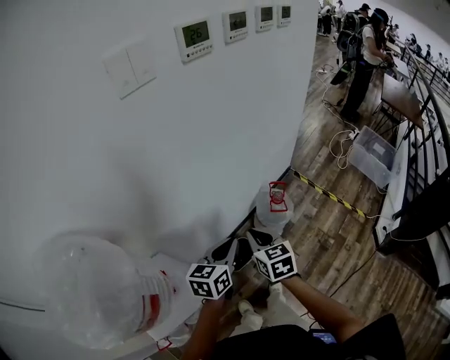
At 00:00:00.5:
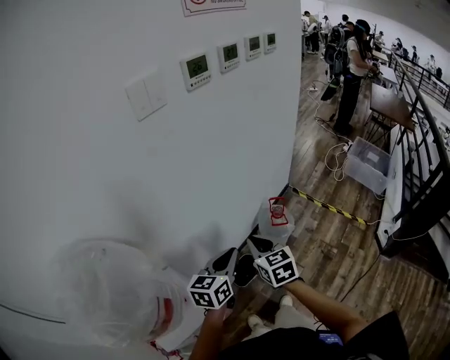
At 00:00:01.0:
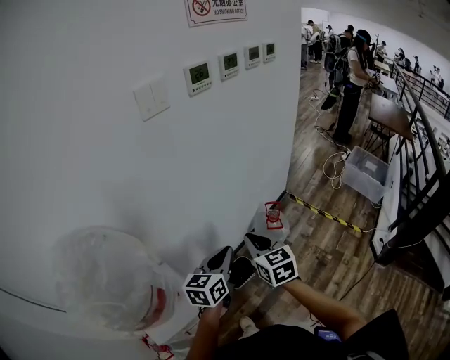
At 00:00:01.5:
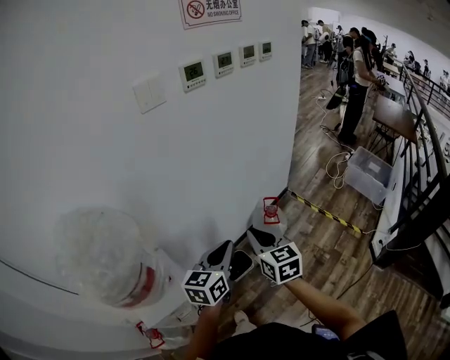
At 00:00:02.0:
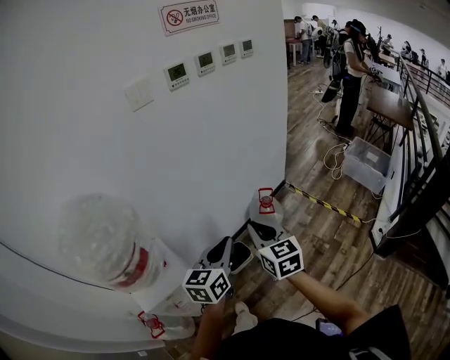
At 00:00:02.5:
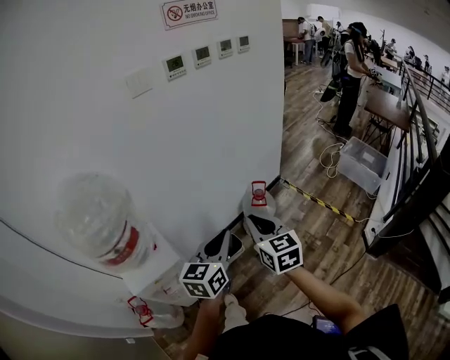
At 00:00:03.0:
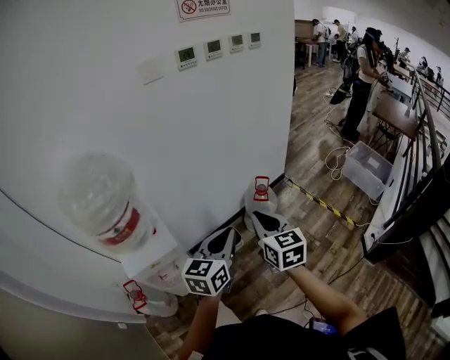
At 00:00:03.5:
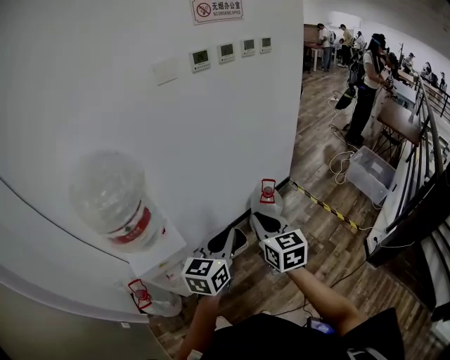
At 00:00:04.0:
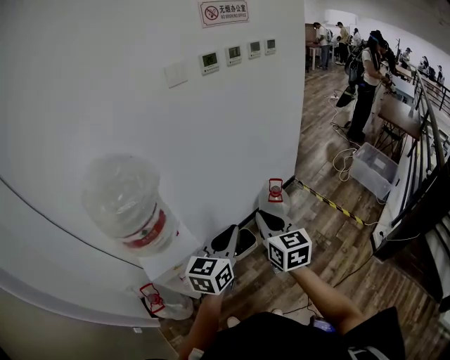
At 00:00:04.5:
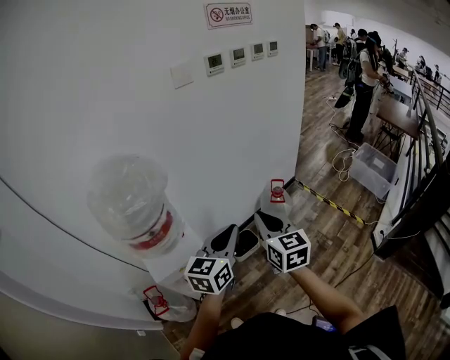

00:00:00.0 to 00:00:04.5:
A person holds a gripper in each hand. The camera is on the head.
00:00:00.0 to 00:00:02.0: Both grippers travel together backward, upward and to the right, some 20 cm.
00:00:02.0 to 00:00:04.5: The grippers both shift backward and to the left by some 10 cm.

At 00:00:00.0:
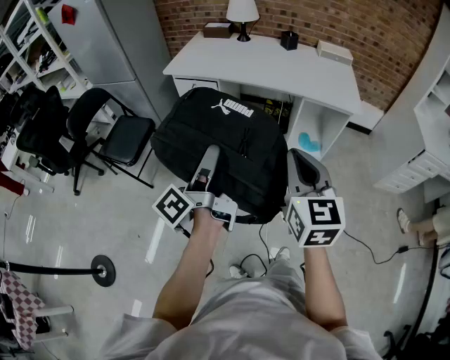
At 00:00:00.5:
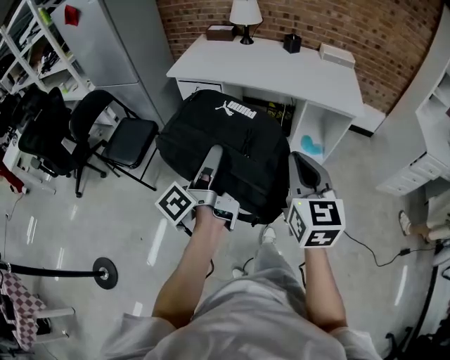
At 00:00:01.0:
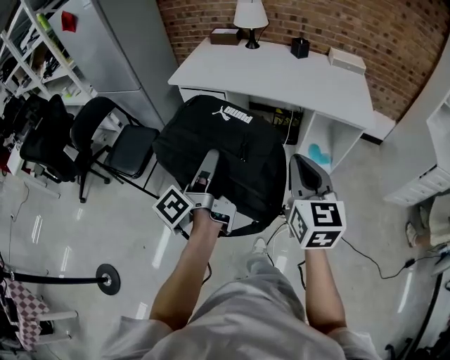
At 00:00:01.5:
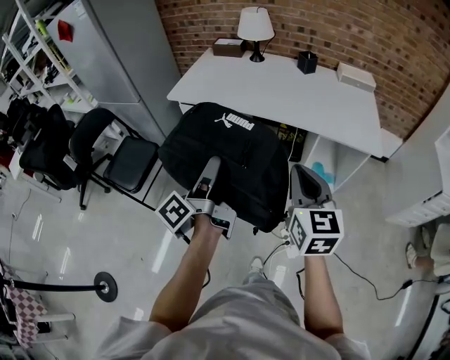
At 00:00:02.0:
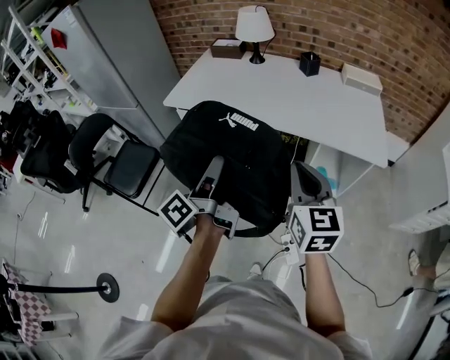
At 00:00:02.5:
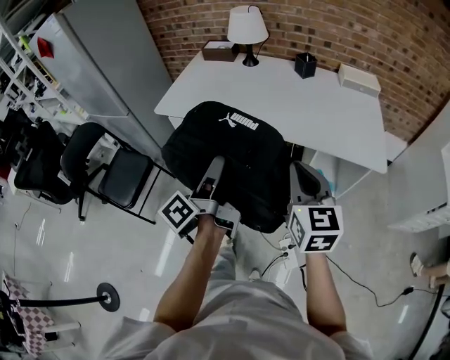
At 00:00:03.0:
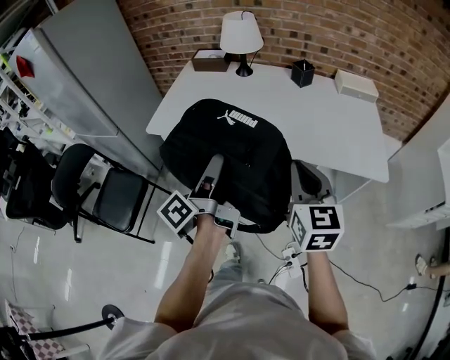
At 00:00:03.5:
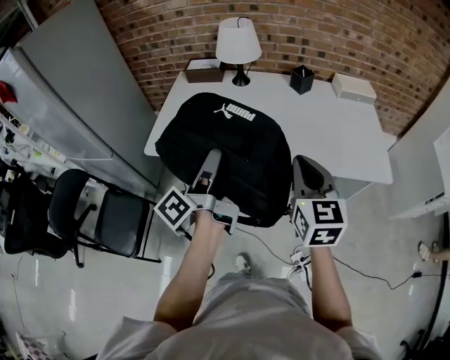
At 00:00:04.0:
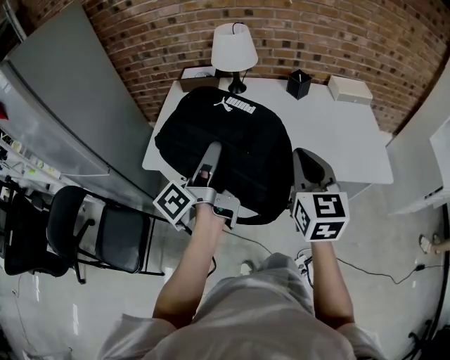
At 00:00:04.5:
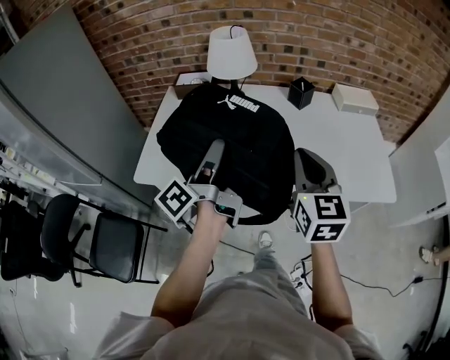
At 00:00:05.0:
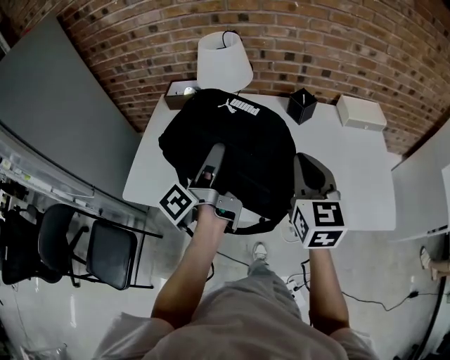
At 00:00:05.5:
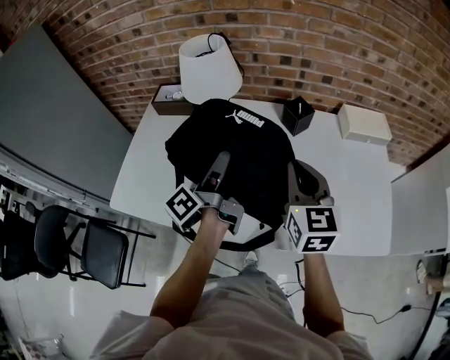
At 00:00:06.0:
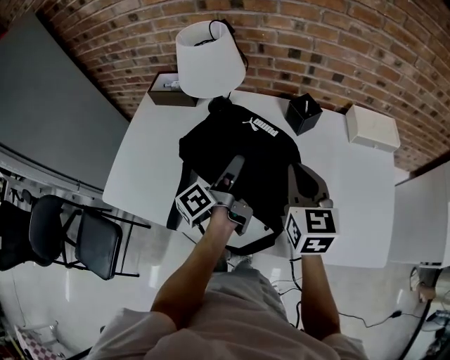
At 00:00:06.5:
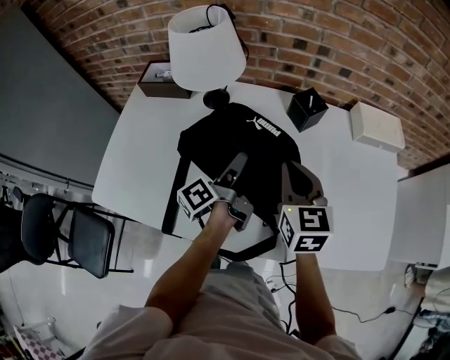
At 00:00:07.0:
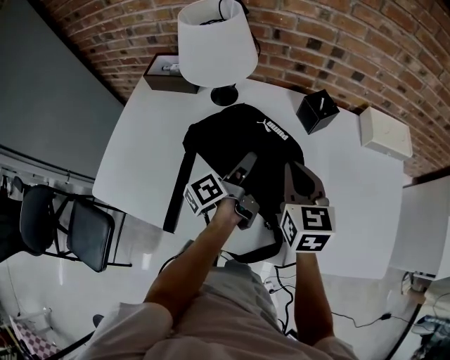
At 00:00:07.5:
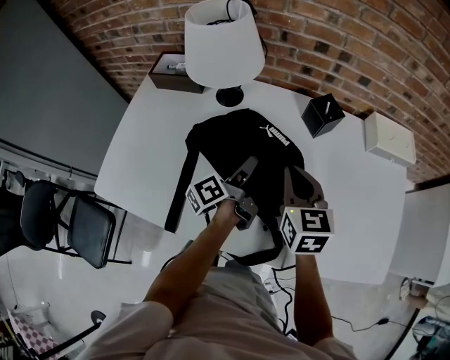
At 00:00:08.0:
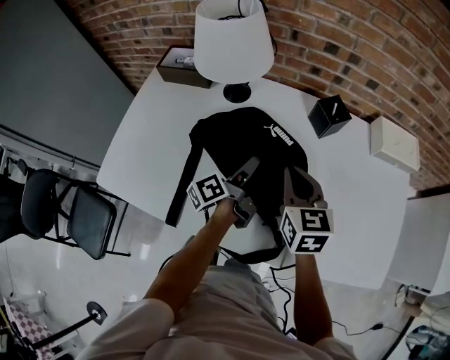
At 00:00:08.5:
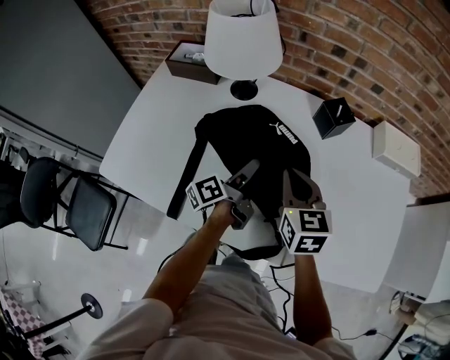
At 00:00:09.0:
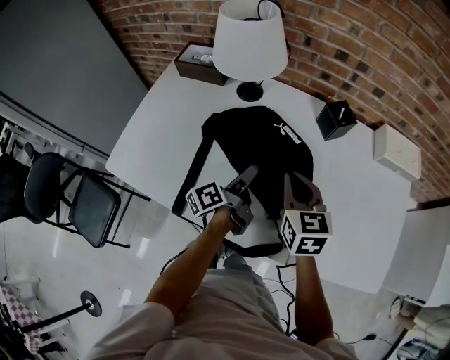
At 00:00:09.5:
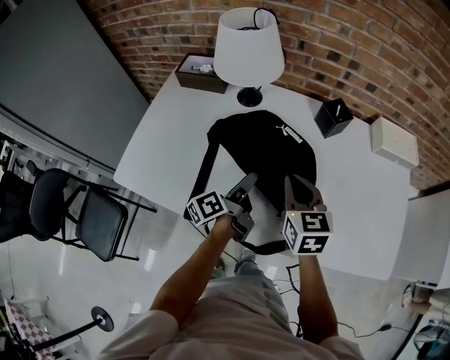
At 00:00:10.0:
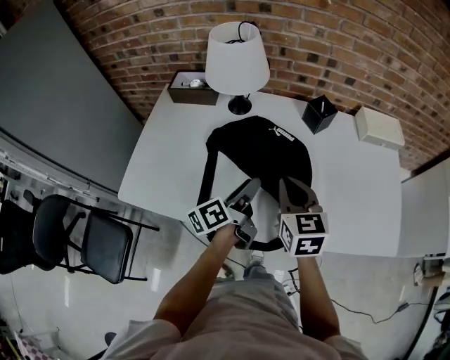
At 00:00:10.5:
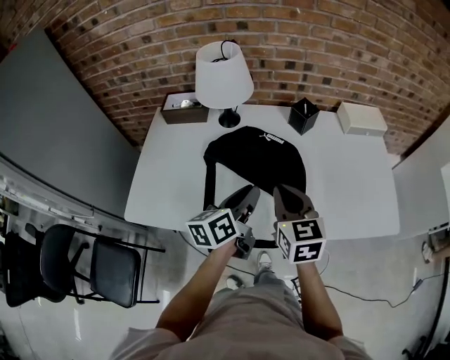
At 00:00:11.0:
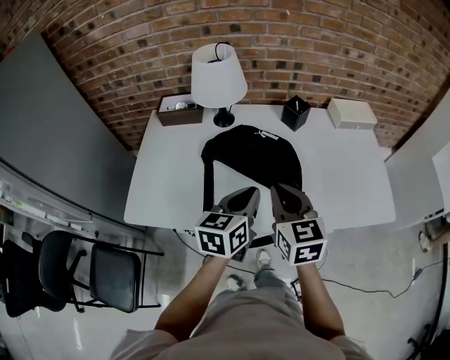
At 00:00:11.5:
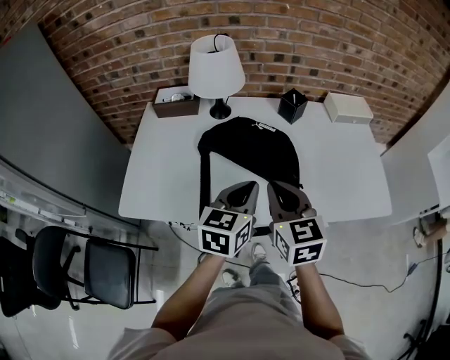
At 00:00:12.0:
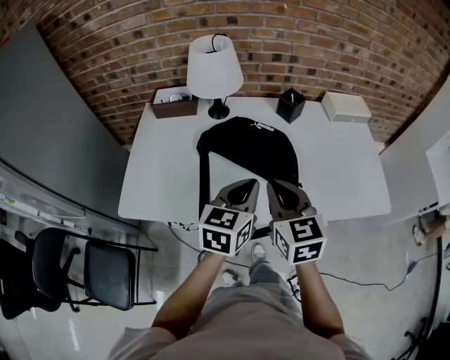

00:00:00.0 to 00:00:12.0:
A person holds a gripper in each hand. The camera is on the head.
00:00:00.0 to 00:00:02.0: The right gripper changes place by roughly 30 cm.
00:00:02.0 to 00:00:04.0: The right gripper moves some 30 cm.
00:00:04.0 to 00:00:06.0: The right gripper shifts by about 35 cm.
00:00:06.0 to 00:00:08.0: The right gripper moves downward, about 10 cm.
00:00:08.0 to 00:00:10.0: The right gripper shifts by about 10 cm.
00:00:10.0 to 00:00:12.0: The right gripper moves some 10 cm.

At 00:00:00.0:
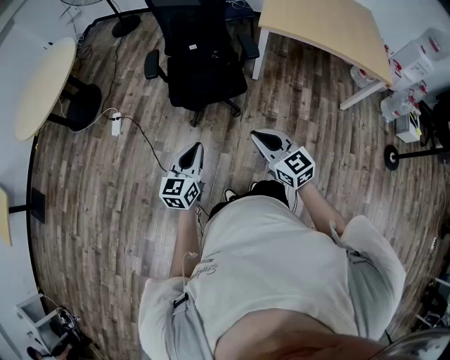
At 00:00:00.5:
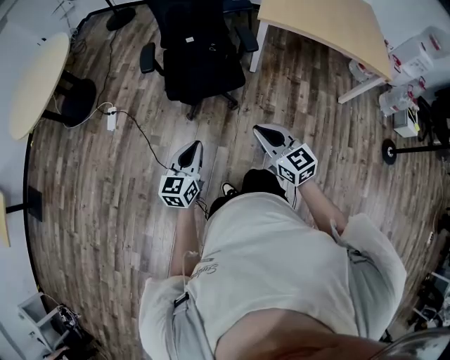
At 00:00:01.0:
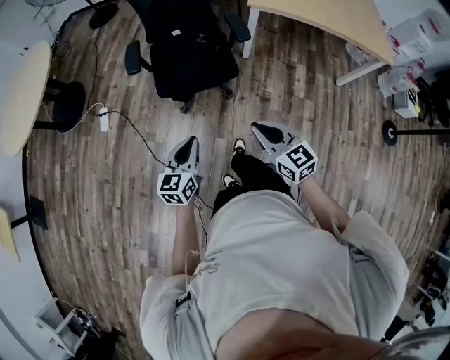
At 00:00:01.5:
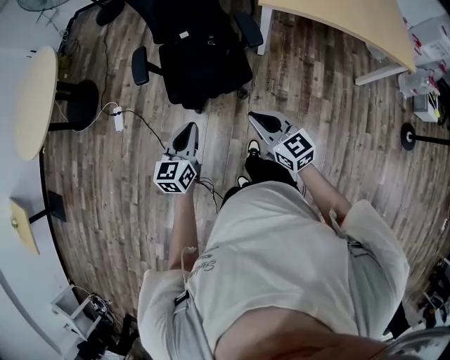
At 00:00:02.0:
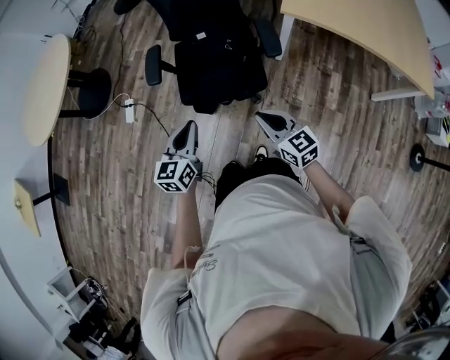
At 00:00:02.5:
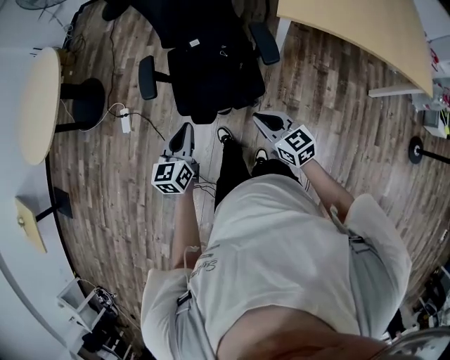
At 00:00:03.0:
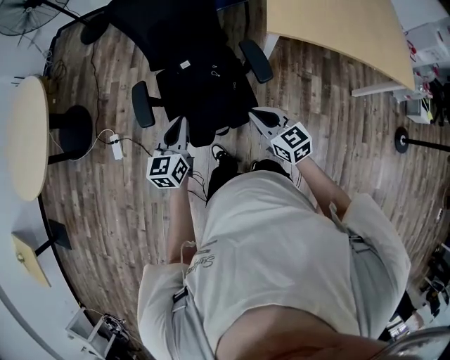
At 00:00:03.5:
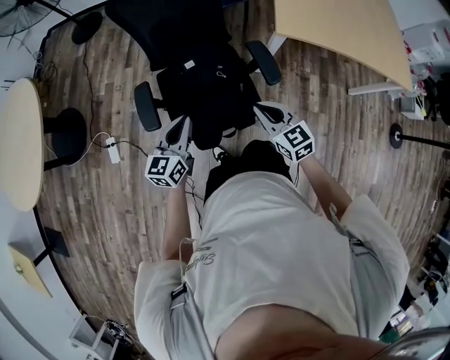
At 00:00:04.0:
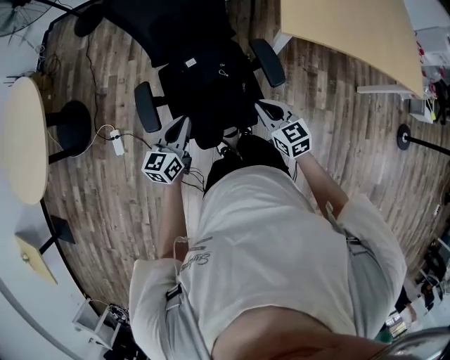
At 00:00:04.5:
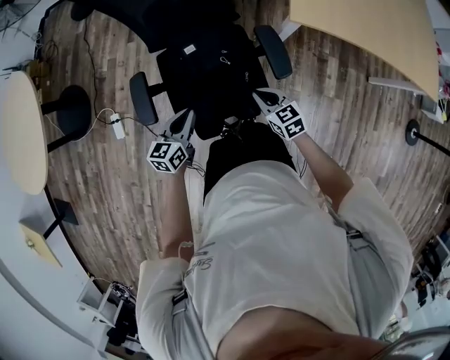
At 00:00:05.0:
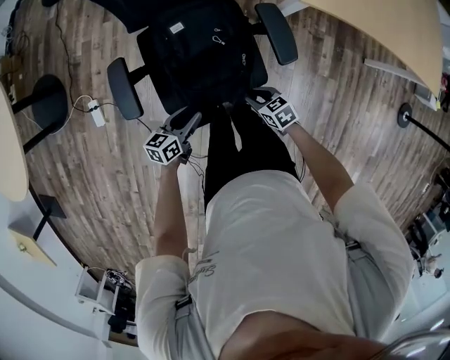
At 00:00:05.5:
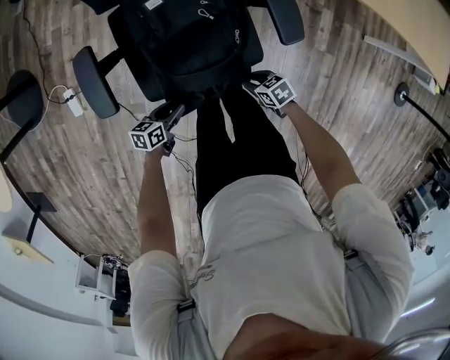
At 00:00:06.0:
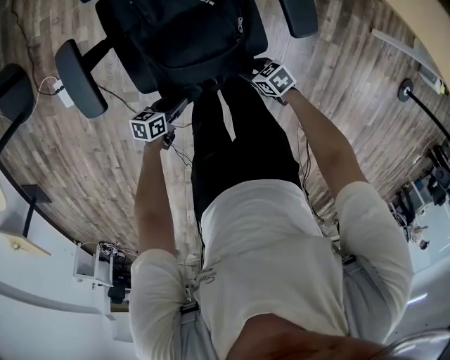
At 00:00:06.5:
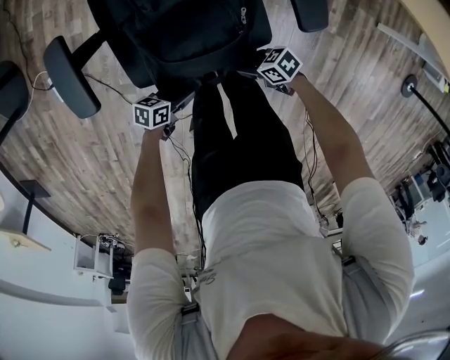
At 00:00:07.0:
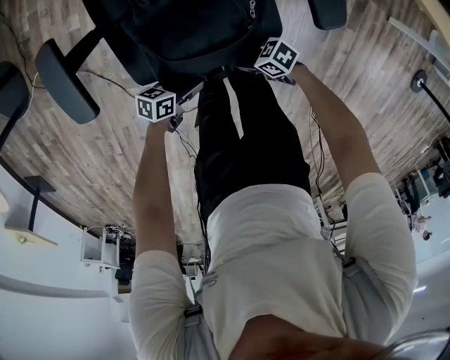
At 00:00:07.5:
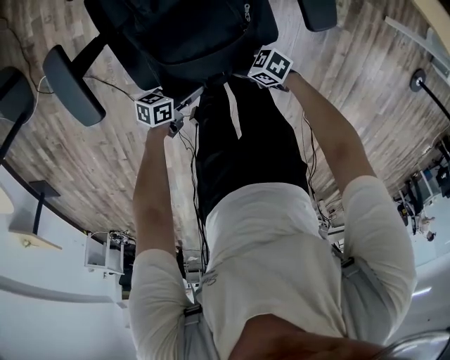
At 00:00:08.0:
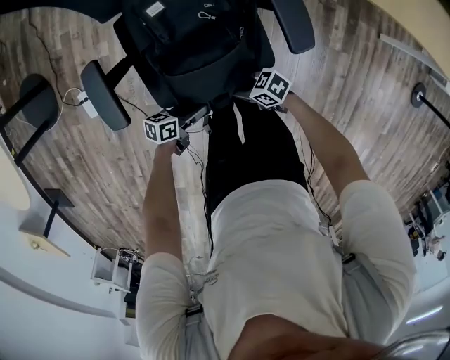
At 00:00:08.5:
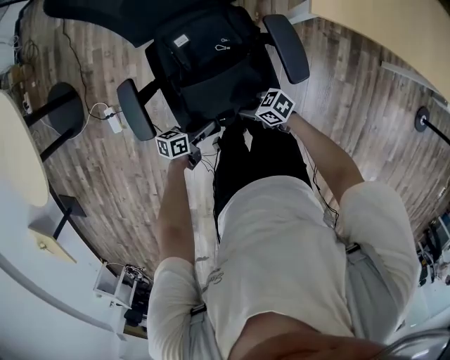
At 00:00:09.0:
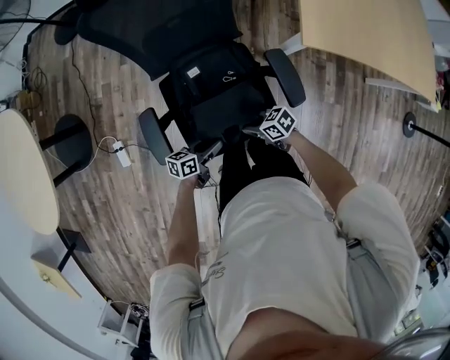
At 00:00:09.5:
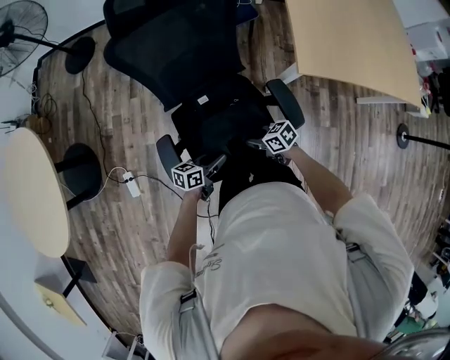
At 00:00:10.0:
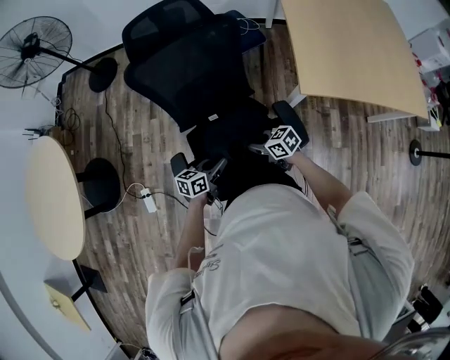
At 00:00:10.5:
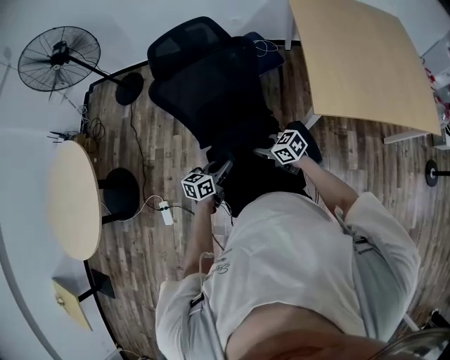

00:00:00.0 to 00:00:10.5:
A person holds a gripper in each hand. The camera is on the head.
00:00:00.0 to 00:00:02.0: Both grippers travel together forward, approximately 25 cm.
00:00:02.0 to 00:00:04.0: The grippers both shift forward by some 25 cm. The left gripper swivels approximately 20 degrees.
00:00:04.0 to 00:00:06.5: Both grippers move downward, some 40 cm. The right gripper changes its angle by approximately 60 degrees, and opens its fingers. Meanwhile the left gripper rotates roughly 60 degrees, and opens.
00:00:06.5 to 00:00:08.5: Both grippers move upward, approximately 15 cm.
00:00:08.5 to 00:00:10.5: Both grippers travel together upward, approximately 20 cm. The right gripper turns by roughly 30 degrees, while the left gripper swivels some 30 degrees, and closes.
